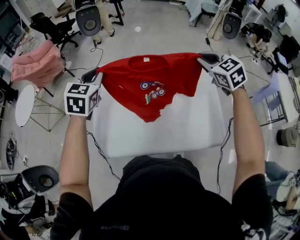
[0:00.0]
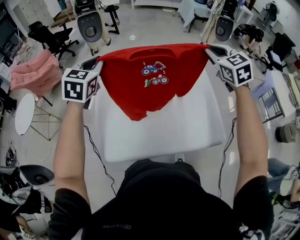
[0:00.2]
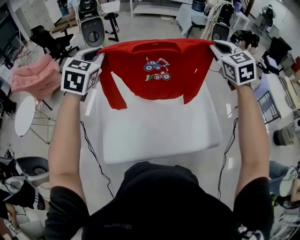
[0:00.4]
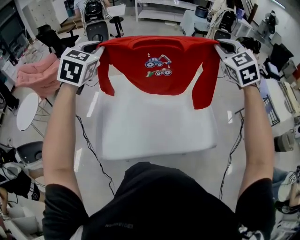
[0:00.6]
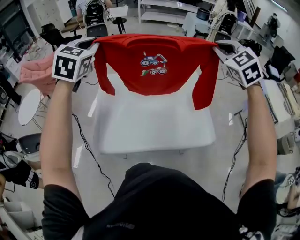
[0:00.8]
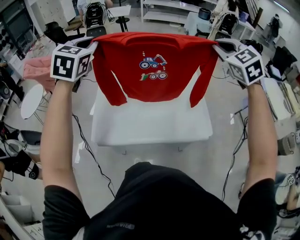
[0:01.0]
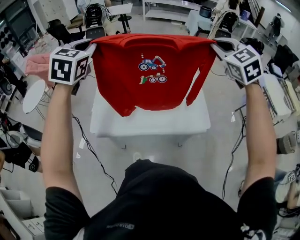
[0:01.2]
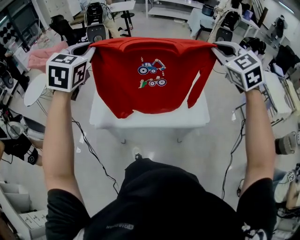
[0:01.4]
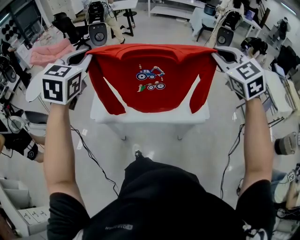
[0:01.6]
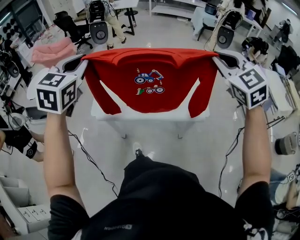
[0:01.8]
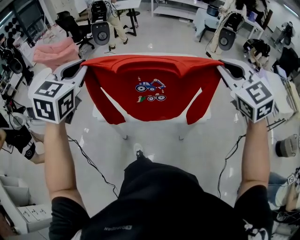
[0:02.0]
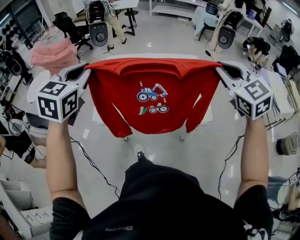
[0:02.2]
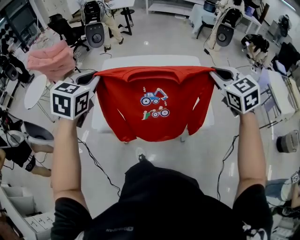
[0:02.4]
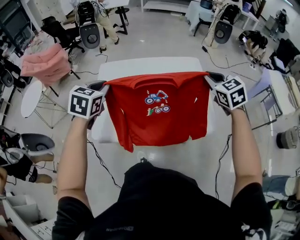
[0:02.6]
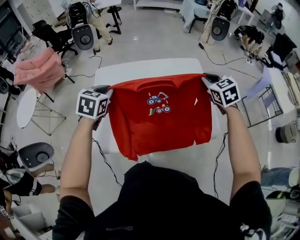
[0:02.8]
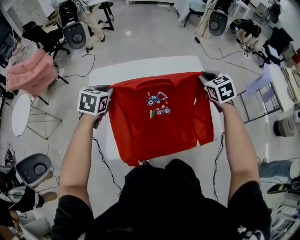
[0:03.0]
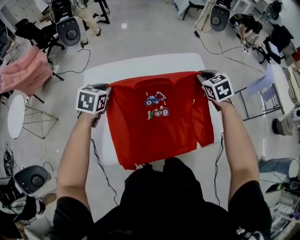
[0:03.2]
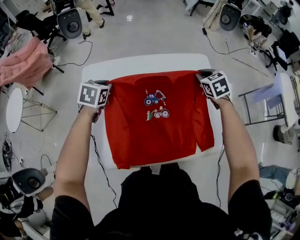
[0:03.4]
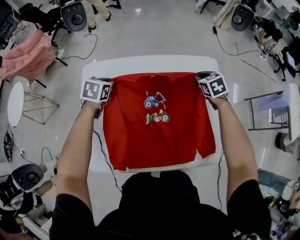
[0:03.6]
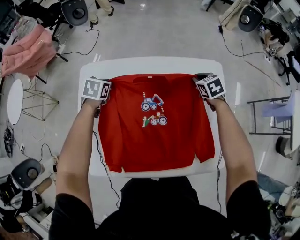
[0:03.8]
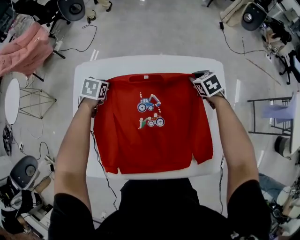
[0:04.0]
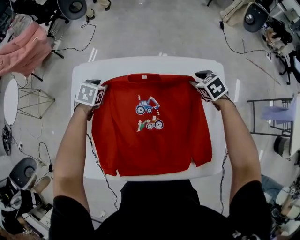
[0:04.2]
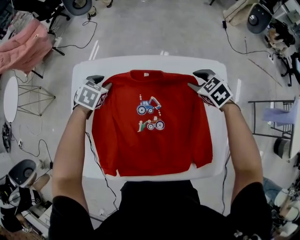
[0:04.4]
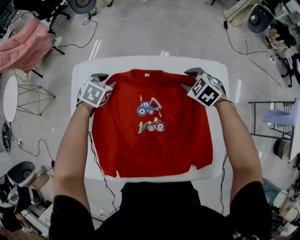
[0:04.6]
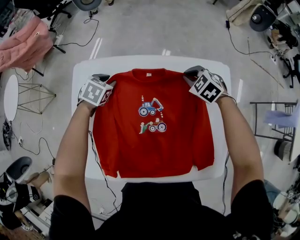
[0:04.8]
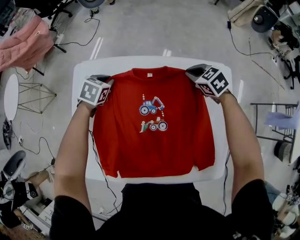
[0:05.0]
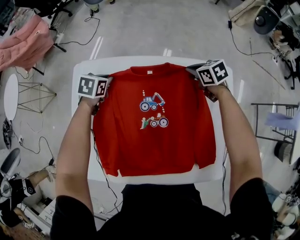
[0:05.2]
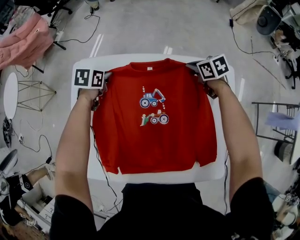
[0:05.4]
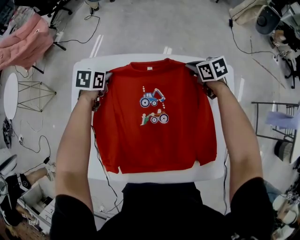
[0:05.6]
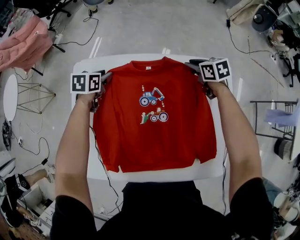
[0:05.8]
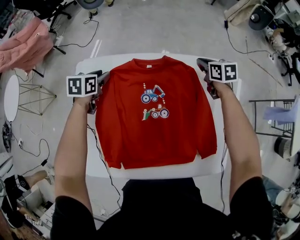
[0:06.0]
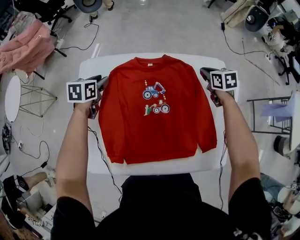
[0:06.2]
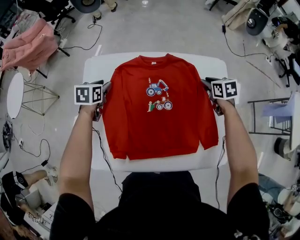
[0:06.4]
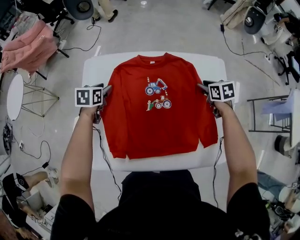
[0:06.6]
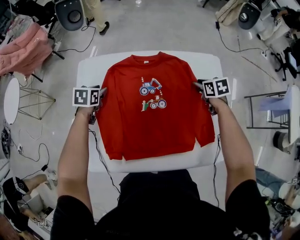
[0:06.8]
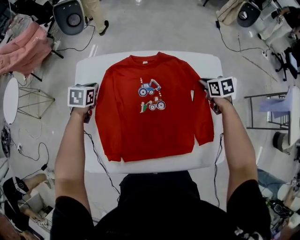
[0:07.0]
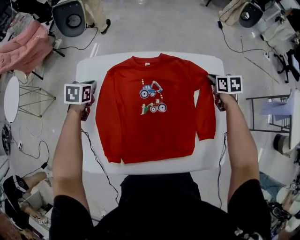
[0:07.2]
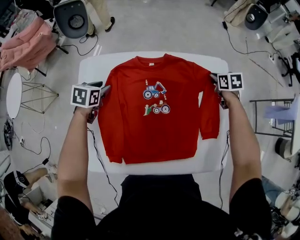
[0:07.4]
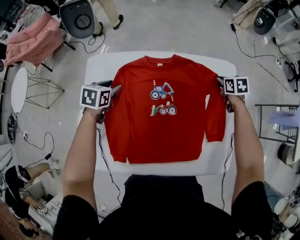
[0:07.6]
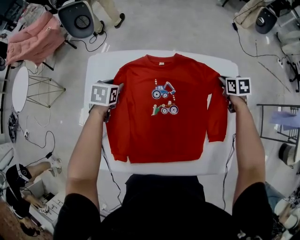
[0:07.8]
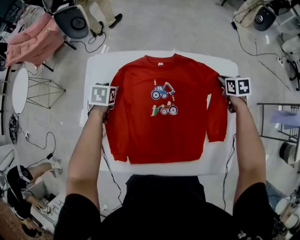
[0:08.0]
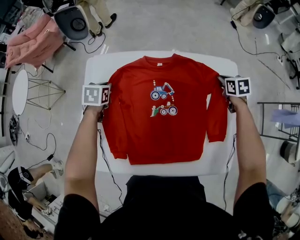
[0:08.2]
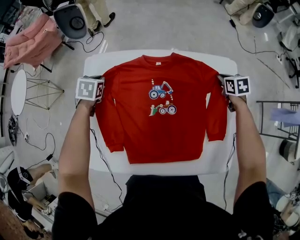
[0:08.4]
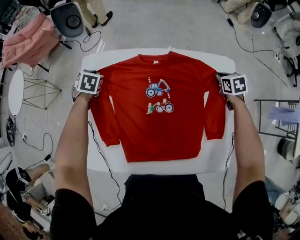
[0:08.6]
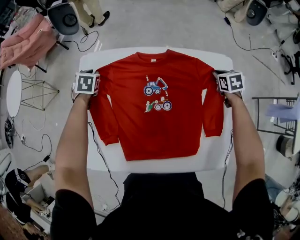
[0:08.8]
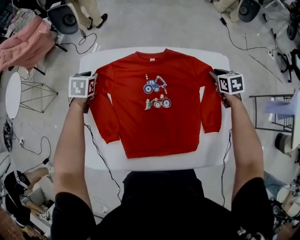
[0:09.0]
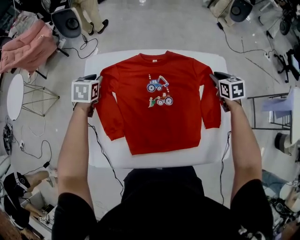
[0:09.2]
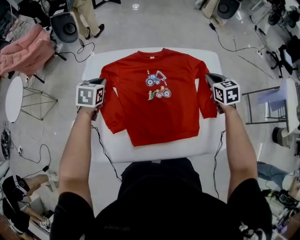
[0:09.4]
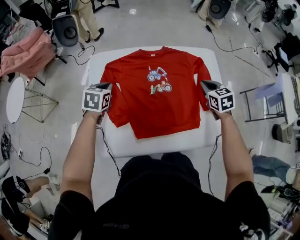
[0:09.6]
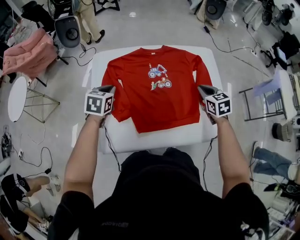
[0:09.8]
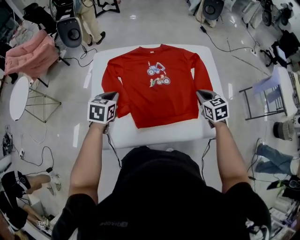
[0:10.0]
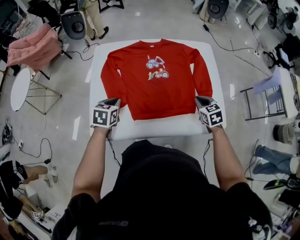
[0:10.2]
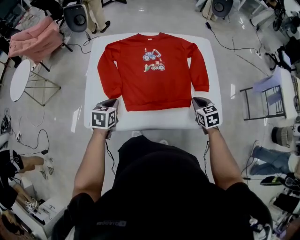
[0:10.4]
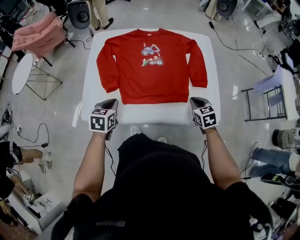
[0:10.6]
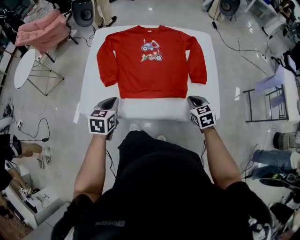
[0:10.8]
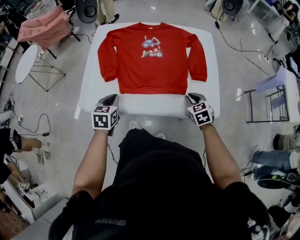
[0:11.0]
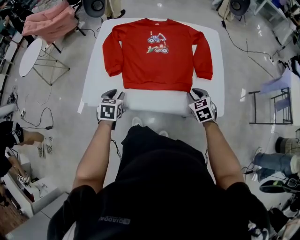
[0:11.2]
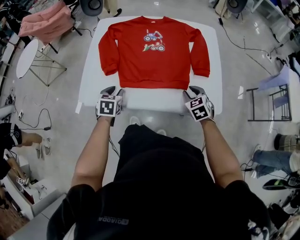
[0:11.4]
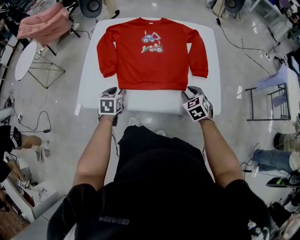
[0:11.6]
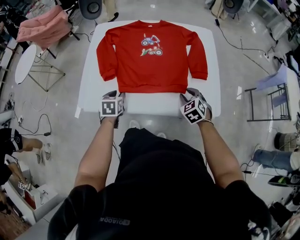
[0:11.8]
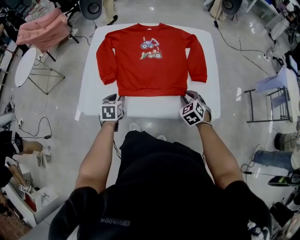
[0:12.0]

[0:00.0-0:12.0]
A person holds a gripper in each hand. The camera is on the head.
0:00.0 to 0:01.6: The two grippers go approximately 35 cm backward and upward.
0:01.6 to 0:03.0: The left gripper is displaced downward and forward by roughly 40 cm, and turns by some 30 degrees. The right gripper shifts some 35 cm forward and downward, and turns by some 30 degrees.
0:03.0 to 0:04.4: The grippers both shift forward and downward by some 25 cm. The right gripper swivels approximately 30 degrees, and opens. Meanwhile the left gripper opens up.
0:04.4 to 0:06.0: The right gripper changes place by some 5 cm, turns by some 40 degrees, and closes up. Meanwhile the left gripper turns by roughly 30 degrees, and closes, then opens again.
0:06.0 to 0:07.6: The left gripper goes some 5 cm backward, and closes, then reopens. Meanwhile the right gripper shifts some 10 cm to the right, backward and downward, and opens, then closes again.
0:07.6 to 0:09.0: The right gripper opens, while the left gripper heads to the left and forward, covering roughly 10 cm.
0:09.0 to 0:10.4: The two grippers go approximately 35 cm backward. The left gripper closes its fingers; the right gripper closes its fingers.
0:10.4 to 0:12.0: Both grippers travel together downward, roughly 5 cm. The right gripper turns by approximately 30 degrees, and opens its fingers. Meanwhile the left gripper opens.

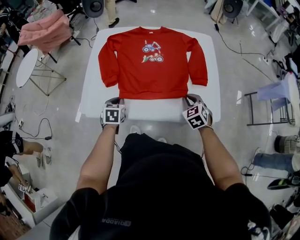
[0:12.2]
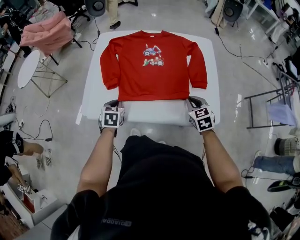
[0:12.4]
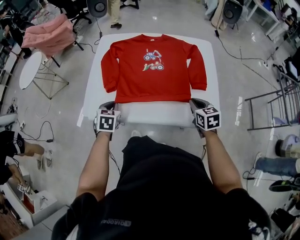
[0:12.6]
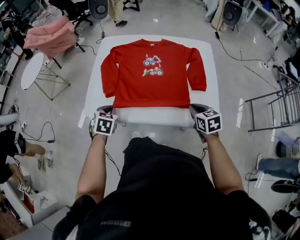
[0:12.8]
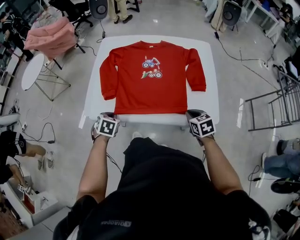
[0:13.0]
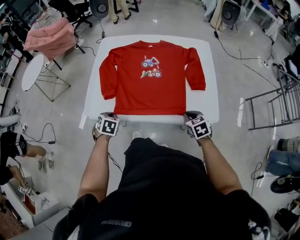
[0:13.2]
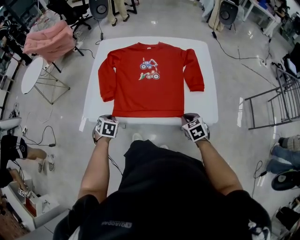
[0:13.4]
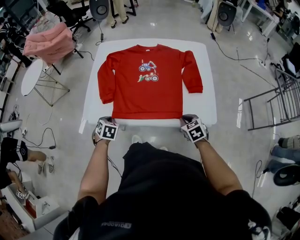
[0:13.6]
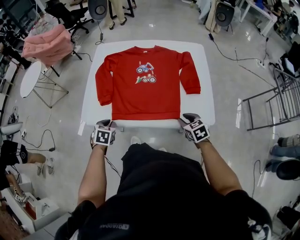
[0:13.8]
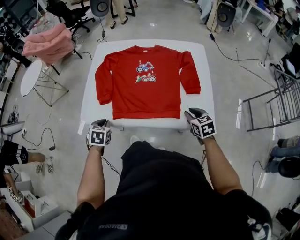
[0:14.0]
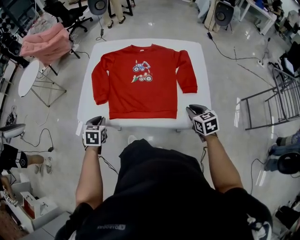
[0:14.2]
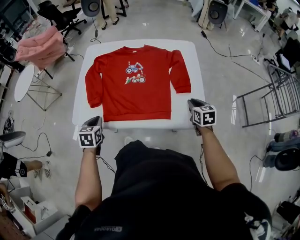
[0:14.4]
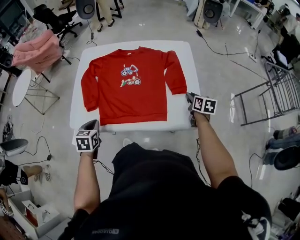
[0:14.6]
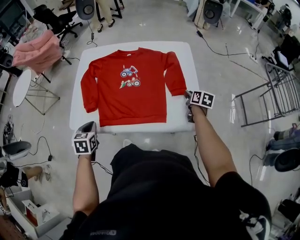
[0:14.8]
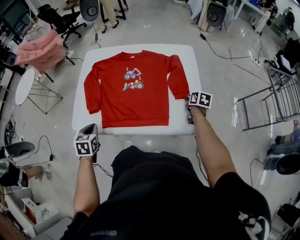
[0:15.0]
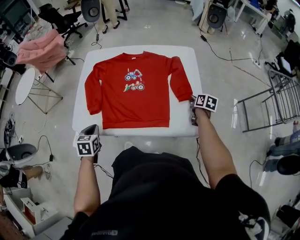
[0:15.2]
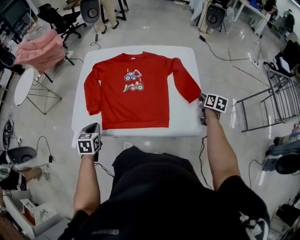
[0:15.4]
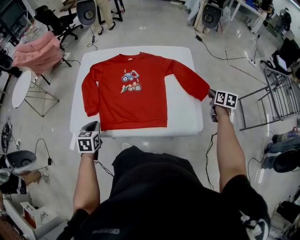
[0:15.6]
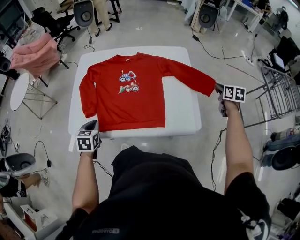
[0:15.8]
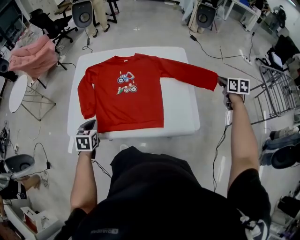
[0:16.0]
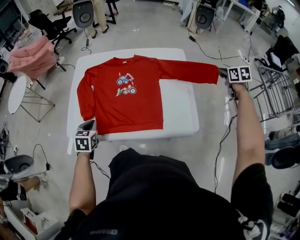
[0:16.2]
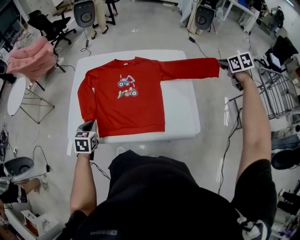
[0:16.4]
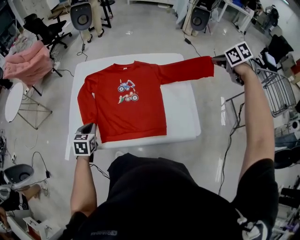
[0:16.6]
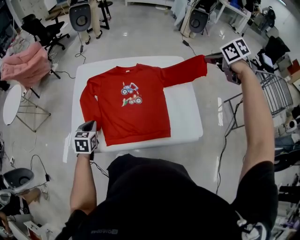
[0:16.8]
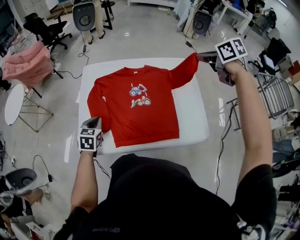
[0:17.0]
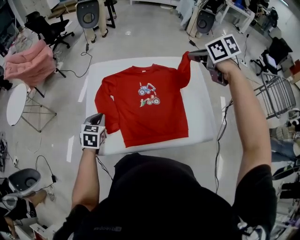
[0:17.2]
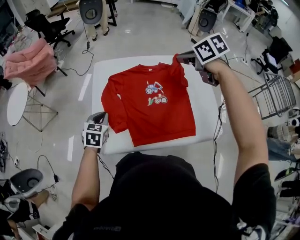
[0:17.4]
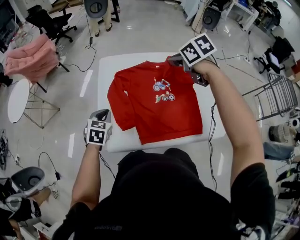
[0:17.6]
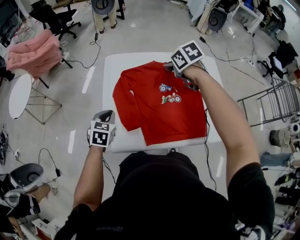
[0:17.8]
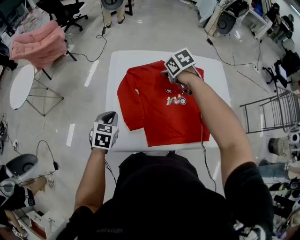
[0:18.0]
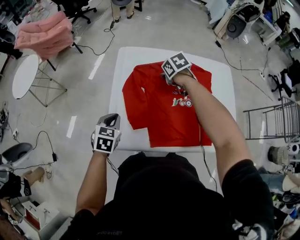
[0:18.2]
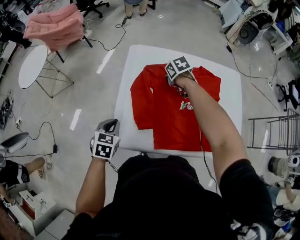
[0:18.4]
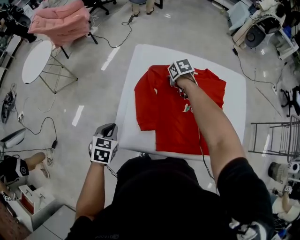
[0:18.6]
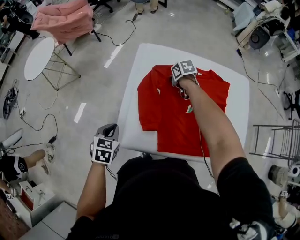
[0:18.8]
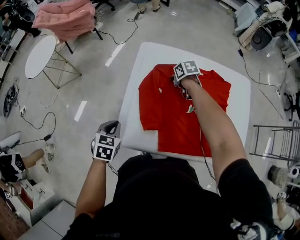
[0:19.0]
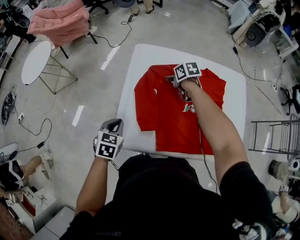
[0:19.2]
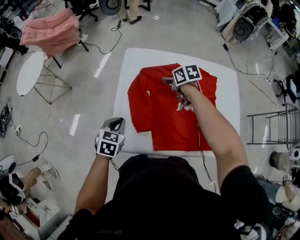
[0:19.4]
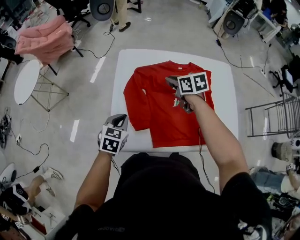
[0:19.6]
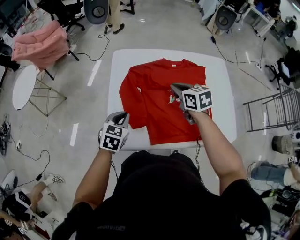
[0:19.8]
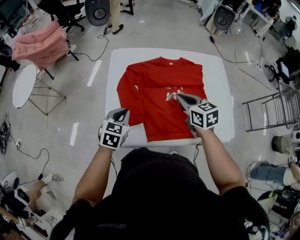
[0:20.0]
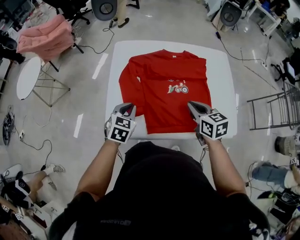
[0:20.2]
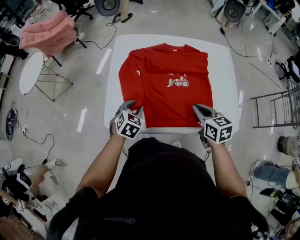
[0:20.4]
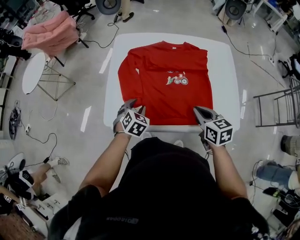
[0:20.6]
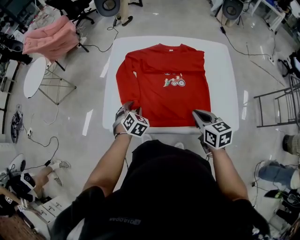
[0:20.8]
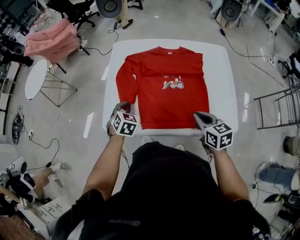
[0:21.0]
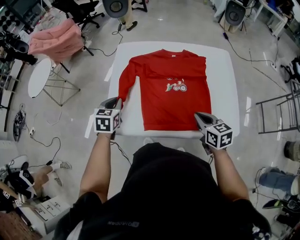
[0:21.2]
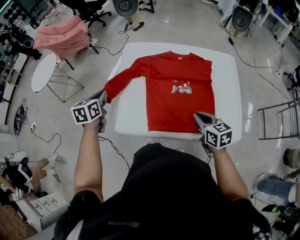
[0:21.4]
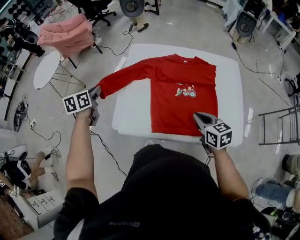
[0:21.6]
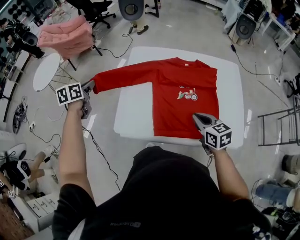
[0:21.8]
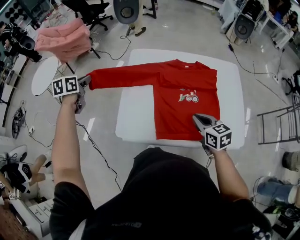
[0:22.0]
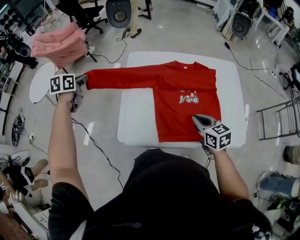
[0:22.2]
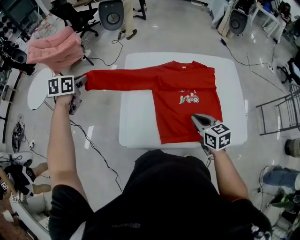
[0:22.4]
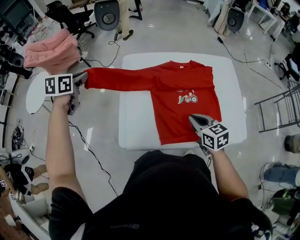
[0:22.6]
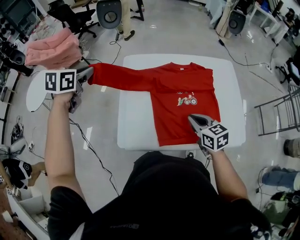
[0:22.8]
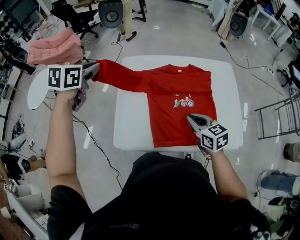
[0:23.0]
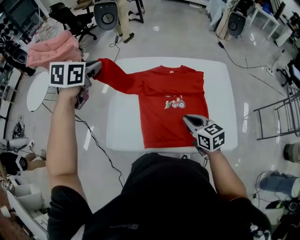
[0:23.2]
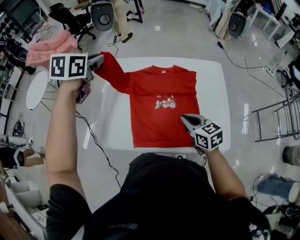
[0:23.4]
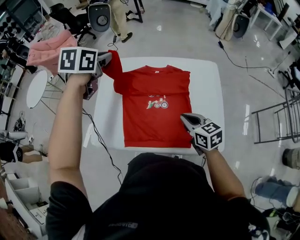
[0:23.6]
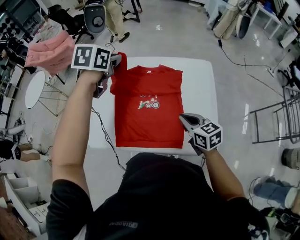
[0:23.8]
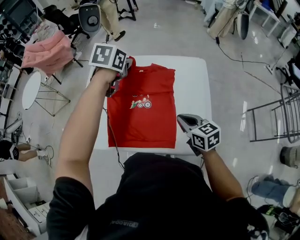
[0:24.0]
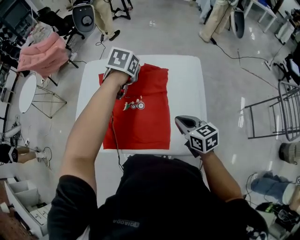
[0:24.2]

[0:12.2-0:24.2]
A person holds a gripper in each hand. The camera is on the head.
0:12.2 to 0:13.8: Both grippers travel together backward, some 5 cm. The right gripper changes its angle by roughly 20 degrees, and opens its fingers. The left gripper reaches some 10 cm upward, then returns.
0:13.8 to 0:15.2: The right gripper heads to the right and forward, covering approximately 20 cm, twists roughly 50 degrees clockwise, seen from behind, and closes its fingers. Meanwhile the left gripper shifts roughly 5 cm upward.
0:15.2 to 0:16.6: The left gripper heads forward, covering approximately 10 cm. Meanwhile the right gripper heads upward, covering some 30 cm, and rotates some 40 degrees.
0:16.6 to 0:18.2: The left gripper heads to the left and forward, covering roughly 15 cm. Meanwhile the right gripper travels to the left and downward by about 50 cm.
0:18.2 to 0:19.8: The right gripper is displaced backward and upward by about 10 cm, swivels about 30 degrees, and opens, then closes once more.
0:19.8 to 0:21.2: The left gripper goes downward and returns, roughly 10 cm each way, and opens, then closes again. The right gripper moves backward and to the right, roughly 25 cm.
0:21.2 to 0:22.6: The left gripper moves forward, upward and to the left, some 30 cm. The right gripper is displaced to the left and forward by roughly 10 cm.
0:22.6 to 0:24.2: The right gripper shifts approximately 25 cm to the right, while the left gripper shifts roughly 50 cm to the right.
